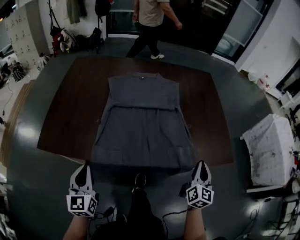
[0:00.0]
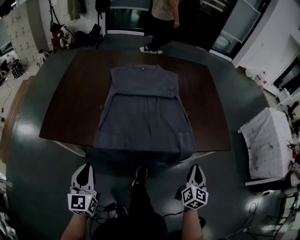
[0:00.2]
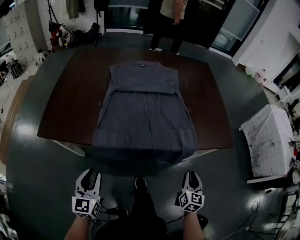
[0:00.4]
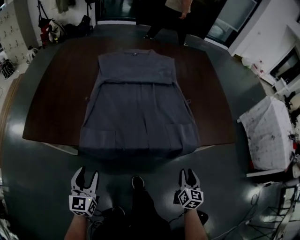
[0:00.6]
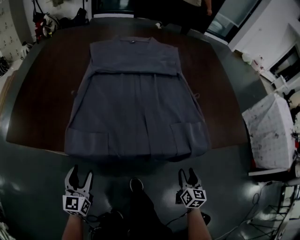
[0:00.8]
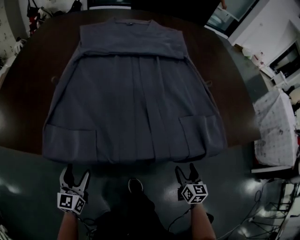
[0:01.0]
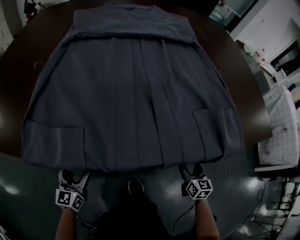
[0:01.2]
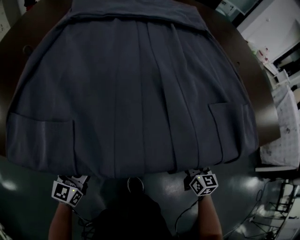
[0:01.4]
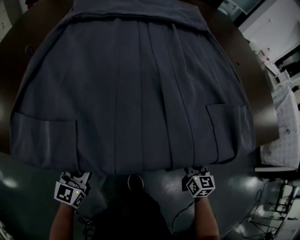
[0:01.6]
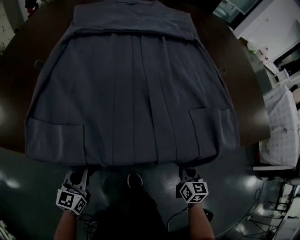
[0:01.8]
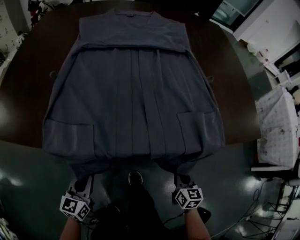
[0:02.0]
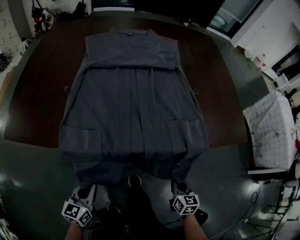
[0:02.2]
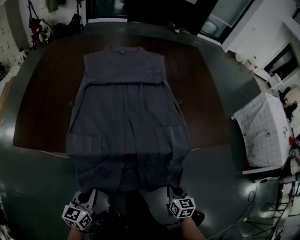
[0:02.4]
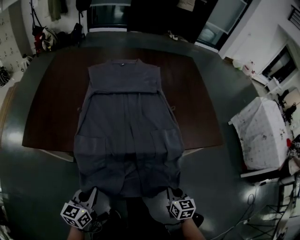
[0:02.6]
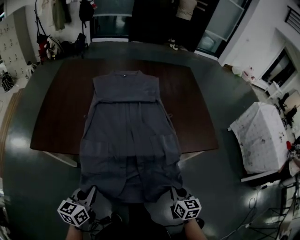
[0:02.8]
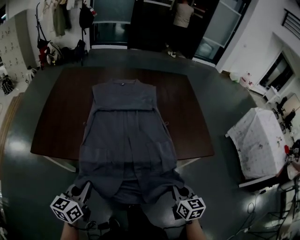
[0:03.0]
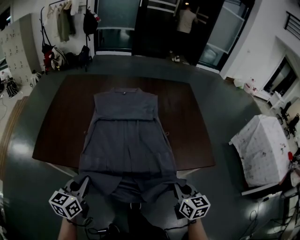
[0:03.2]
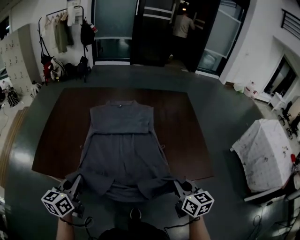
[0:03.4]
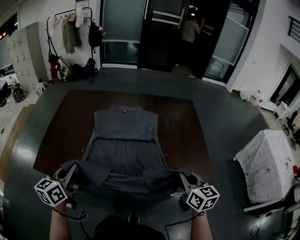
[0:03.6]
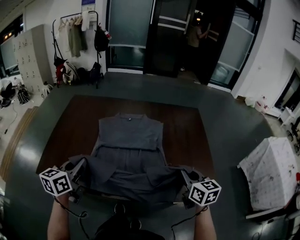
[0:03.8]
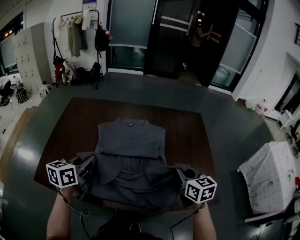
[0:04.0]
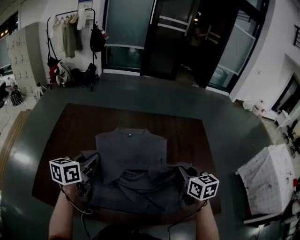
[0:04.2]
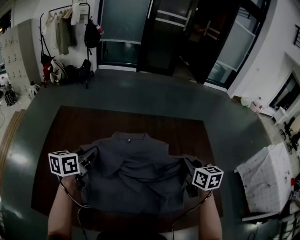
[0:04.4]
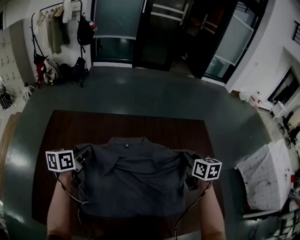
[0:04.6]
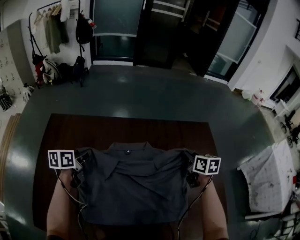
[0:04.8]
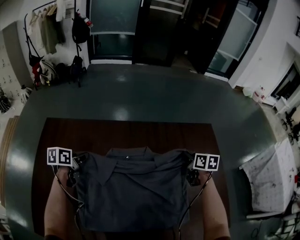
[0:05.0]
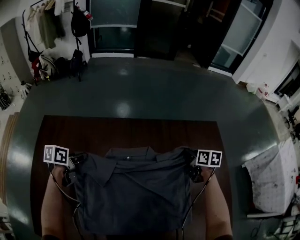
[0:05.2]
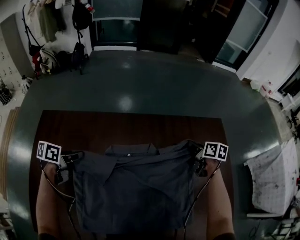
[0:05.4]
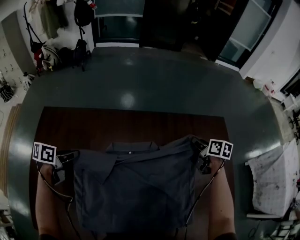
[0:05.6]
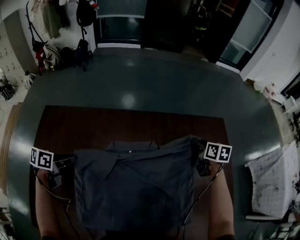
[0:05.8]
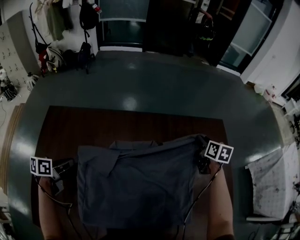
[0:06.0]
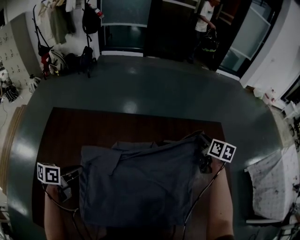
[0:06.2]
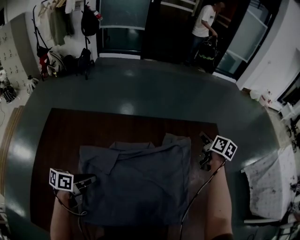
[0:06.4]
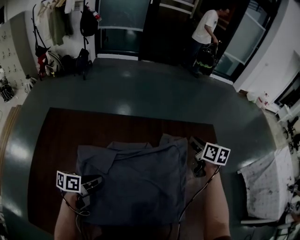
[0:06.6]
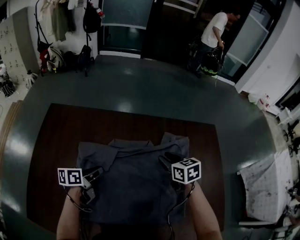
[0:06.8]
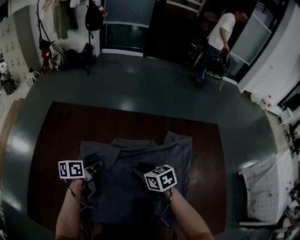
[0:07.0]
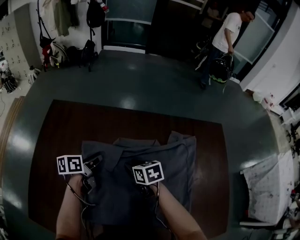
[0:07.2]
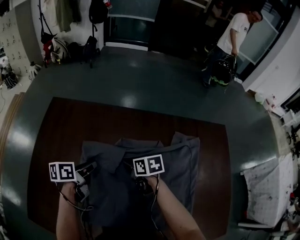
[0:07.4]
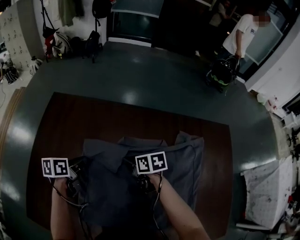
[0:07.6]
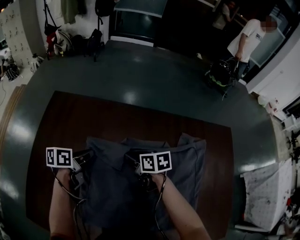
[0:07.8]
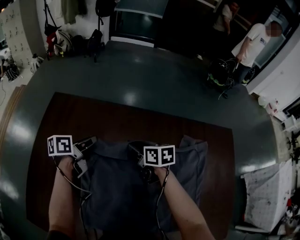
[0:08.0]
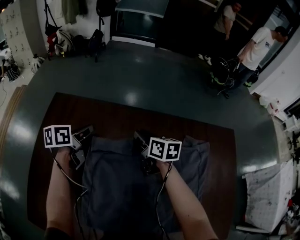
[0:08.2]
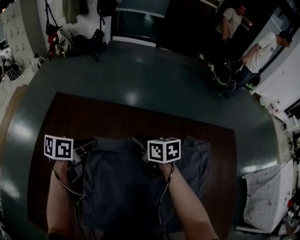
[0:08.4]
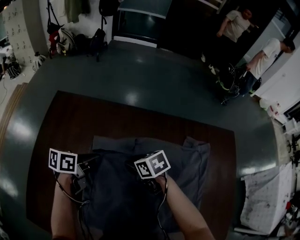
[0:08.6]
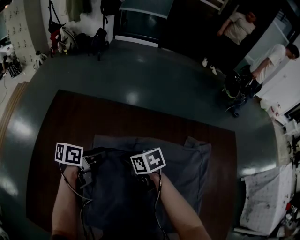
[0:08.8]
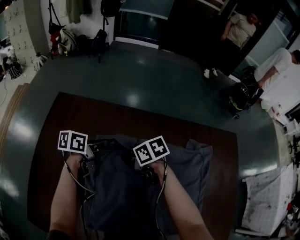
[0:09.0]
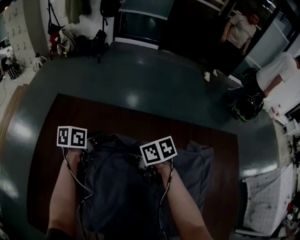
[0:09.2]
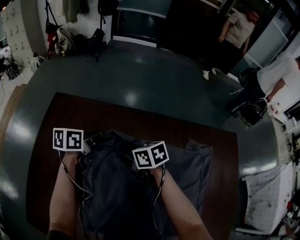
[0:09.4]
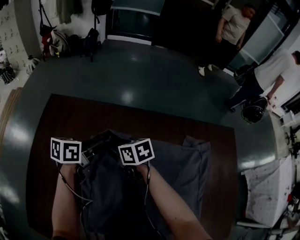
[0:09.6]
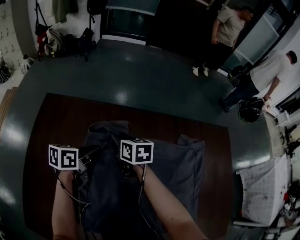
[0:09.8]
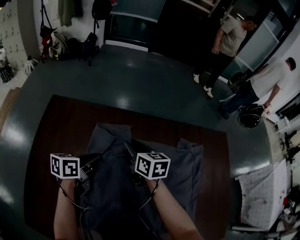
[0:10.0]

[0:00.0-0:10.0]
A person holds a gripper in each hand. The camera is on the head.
0:00.0 to 0:01.4: The grippers both shift downward by some 40 cm. The left gripper turns by about 20 degrees, and opens up. Meanwhile the right gripper turns by roughly 30 degrees, and opens up.
0:01.4 to 0:02.8: The grippers both shift upward and backward by some 40 cm. The right gripper closes its fingers. The left gripper closes its fingers.
0:02.8 to 0:04.2: The two grippers travel together, forward, some 40 cm. The right gripper goes approximately 20 cm upward.
0:04.2 to 0:05.8: The right gripper shifts some 40 cm forward and downward, changes its angle by about 20 degrees, and opens, while the left gripper shifts roughly 30 cm forward, downward and to the left, and turns by some 30 degrees.
0:05.8 to 0:07.2: The right gripper moves approximately 35 cm, and swivels approximately 30 degrees. The left gripper swivels approximately 20 degrees.
0:07.2 to 0:08.6: The right gripper moves approximately 15 cm forward and comes back, while the left gripper reaches some 15 cm forward, then returns.
0:08.6 to 0:10.0: The right gripper ends up some 10 cm from where it was, and turns by approximately 40 degrees.

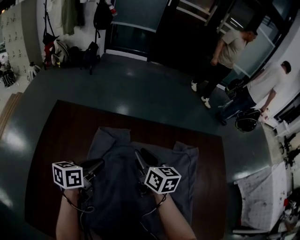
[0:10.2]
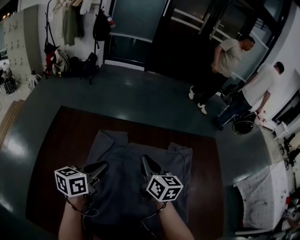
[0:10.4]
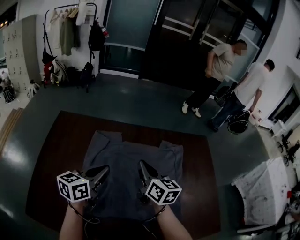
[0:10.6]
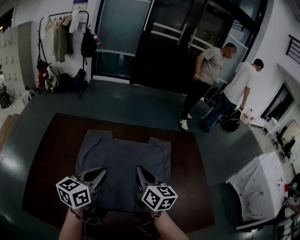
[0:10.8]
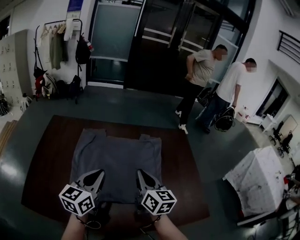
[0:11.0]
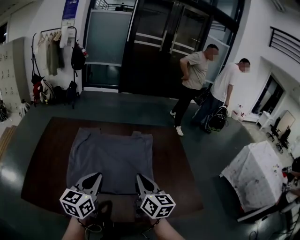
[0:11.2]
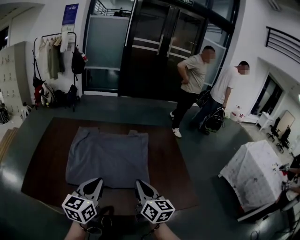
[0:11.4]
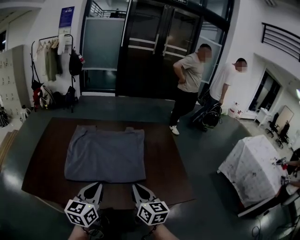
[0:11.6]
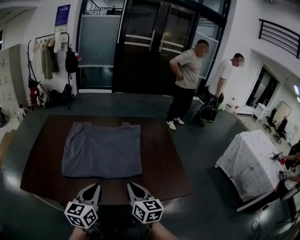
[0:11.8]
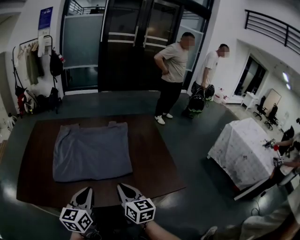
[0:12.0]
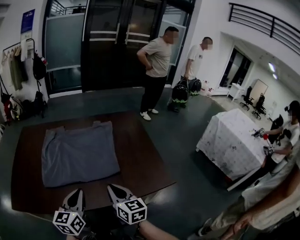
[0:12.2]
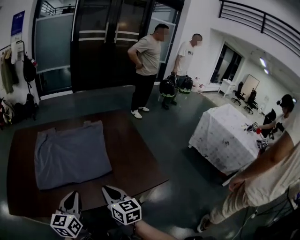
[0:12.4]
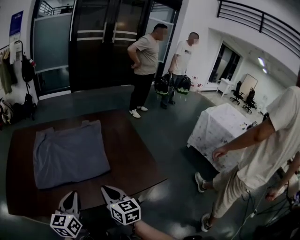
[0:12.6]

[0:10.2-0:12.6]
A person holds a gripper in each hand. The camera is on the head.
0:10.2 to 0:11.4: The two grippers travel together, backward and to the right, roughly 50 cm. The right gripper swivels approximately 20 degrees, and closes its fingers, while the left gripper is displaced upward by approximately 15 cm, and turns by some 30 degrees.
0:11.4 to 0:12.6: The right gripper travels backward and downward by roughly 10 cm. The left gripper moves backward and to the right, some 10 cm.

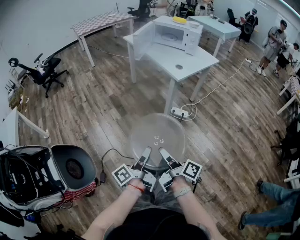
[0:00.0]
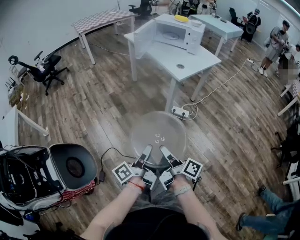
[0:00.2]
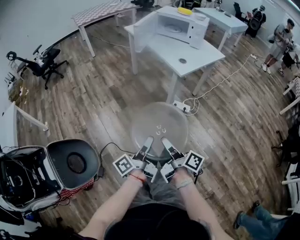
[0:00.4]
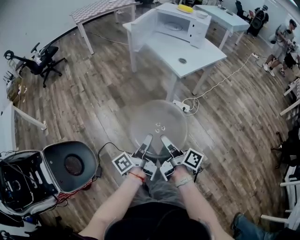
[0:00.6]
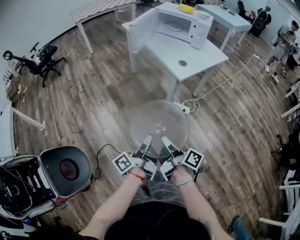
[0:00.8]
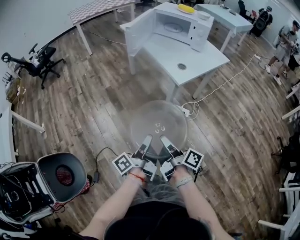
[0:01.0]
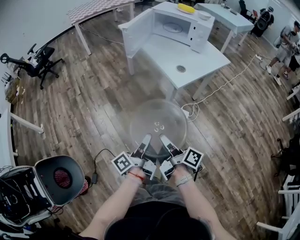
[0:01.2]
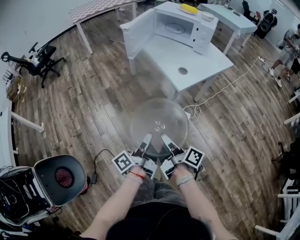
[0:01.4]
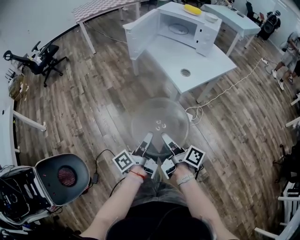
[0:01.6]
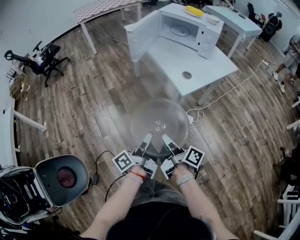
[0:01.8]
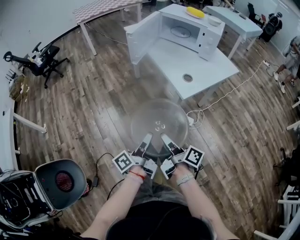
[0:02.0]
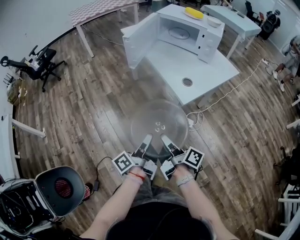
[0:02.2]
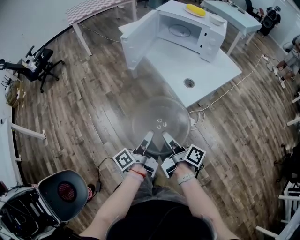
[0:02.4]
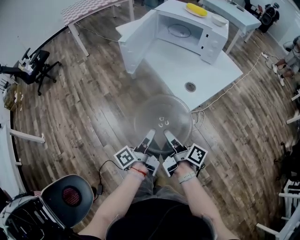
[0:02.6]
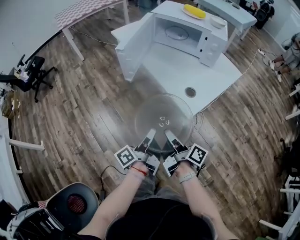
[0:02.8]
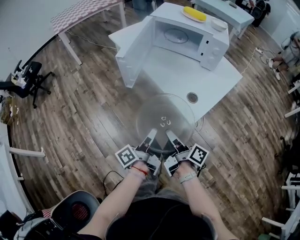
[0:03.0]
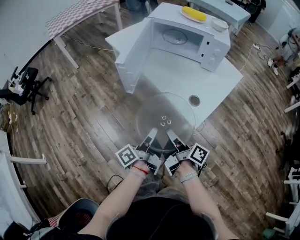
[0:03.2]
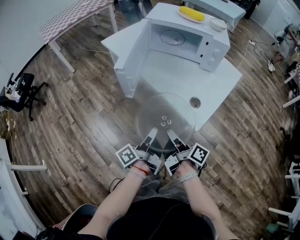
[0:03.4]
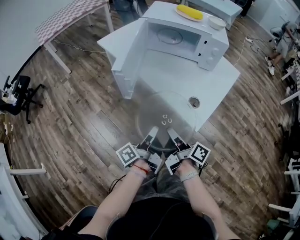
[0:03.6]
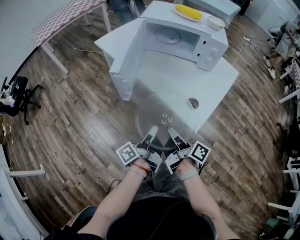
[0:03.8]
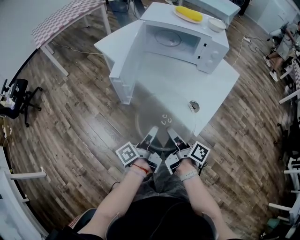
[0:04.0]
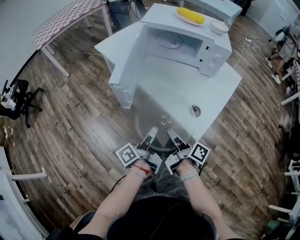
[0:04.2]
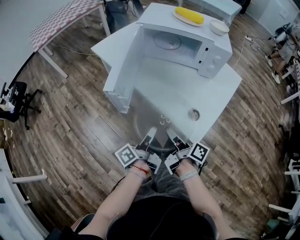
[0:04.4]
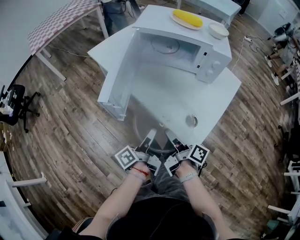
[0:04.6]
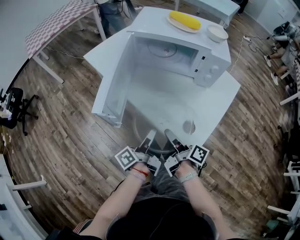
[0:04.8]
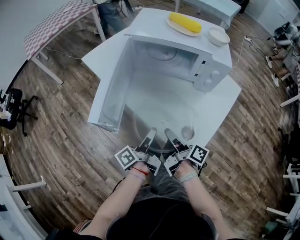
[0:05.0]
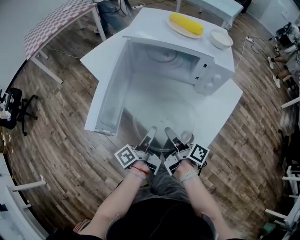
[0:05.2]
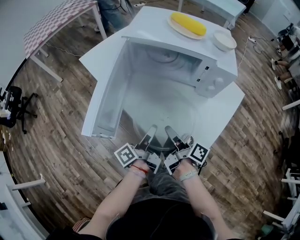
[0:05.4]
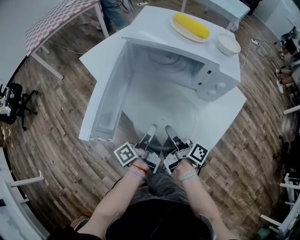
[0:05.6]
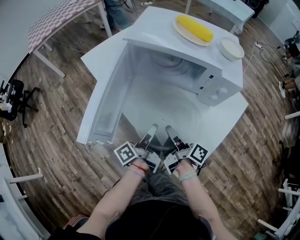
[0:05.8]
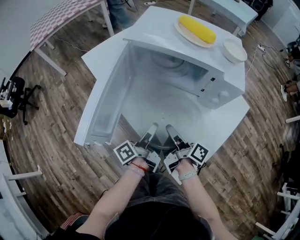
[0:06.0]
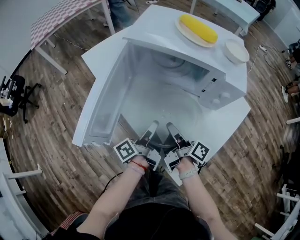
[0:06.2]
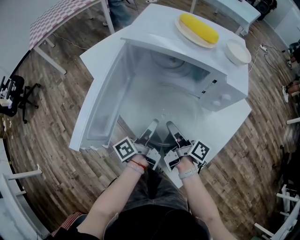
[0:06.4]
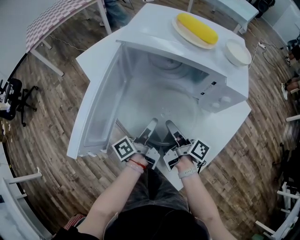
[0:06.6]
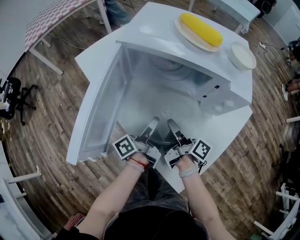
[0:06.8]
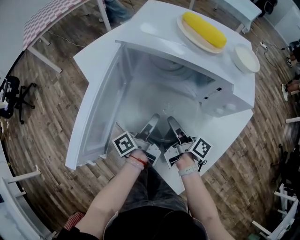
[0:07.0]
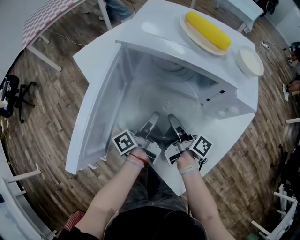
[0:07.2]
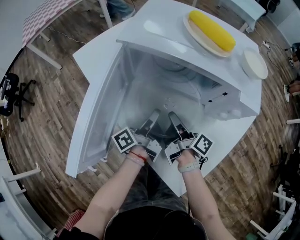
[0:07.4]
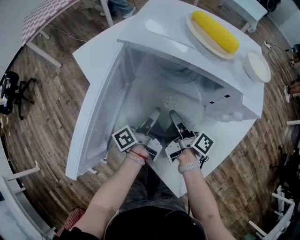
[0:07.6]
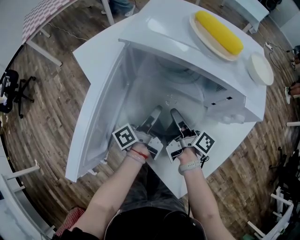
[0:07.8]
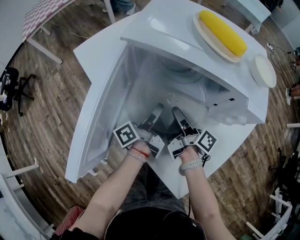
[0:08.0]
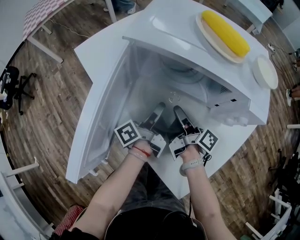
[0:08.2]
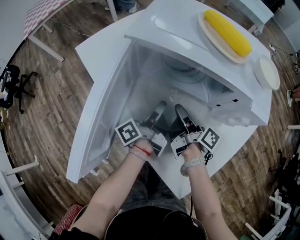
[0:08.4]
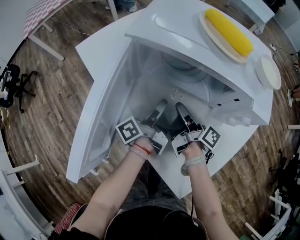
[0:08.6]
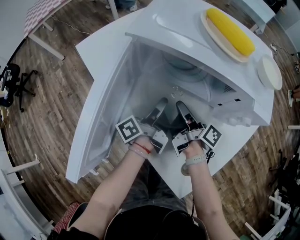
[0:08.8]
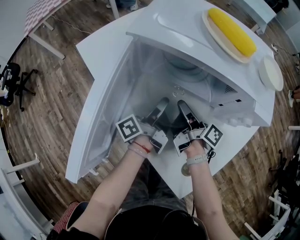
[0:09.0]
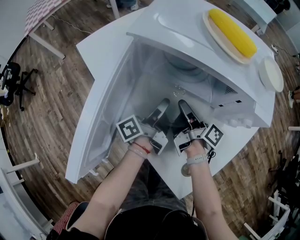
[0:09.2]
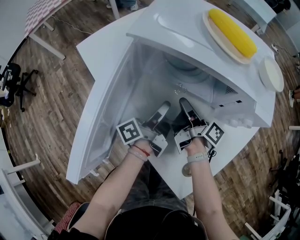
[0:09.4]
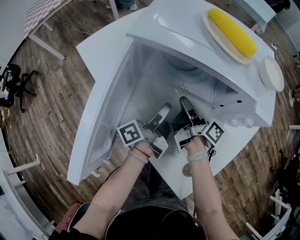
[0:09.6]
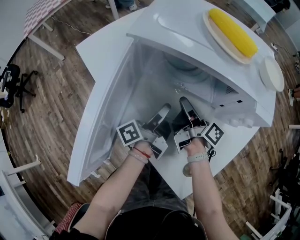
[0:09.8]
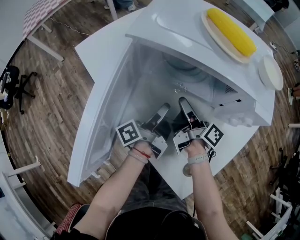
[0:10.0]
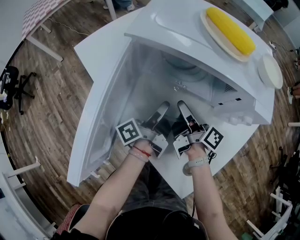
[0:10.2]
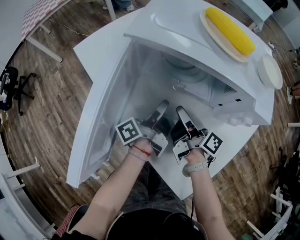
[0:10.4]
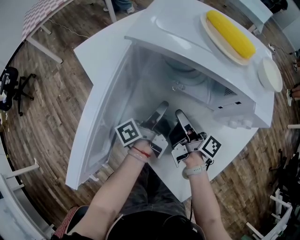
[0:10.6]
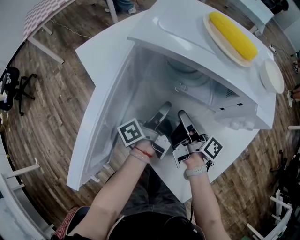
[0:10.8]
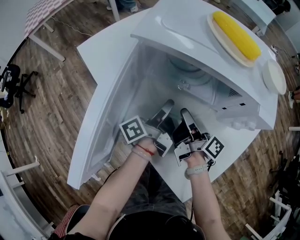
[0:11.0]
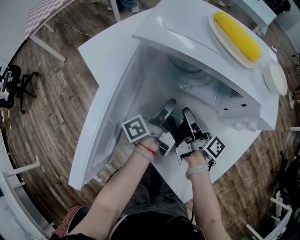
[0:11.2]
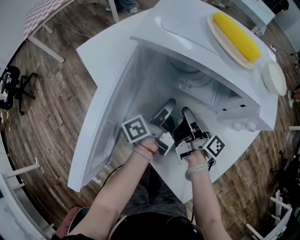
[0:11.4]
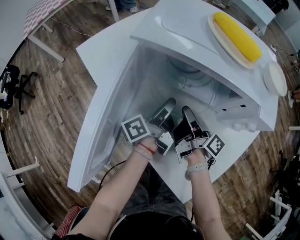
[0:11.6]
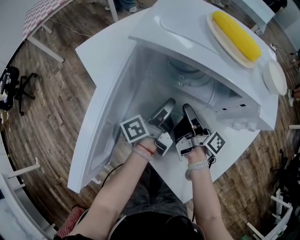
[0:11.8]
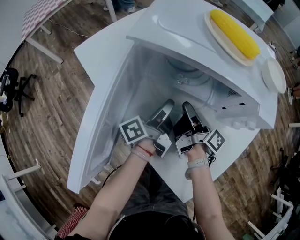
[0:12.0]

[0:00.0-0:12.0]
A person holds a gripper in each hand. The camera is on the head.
0:00.0 to 0:01.6: The right gripper ends up approximately 25 cm from where it was.
0:01.6 to 0:03.0: The right gripper changes place by approximately 20 cm.
0:03.0 to 0:04.4: The right gripper moves about 15 cm.
0:04.4 to 0:06.0: The right gripper changes place by about 20 cm.
0:06.0 to 0:07.6: The right gripper moves roughly 10 cm.
